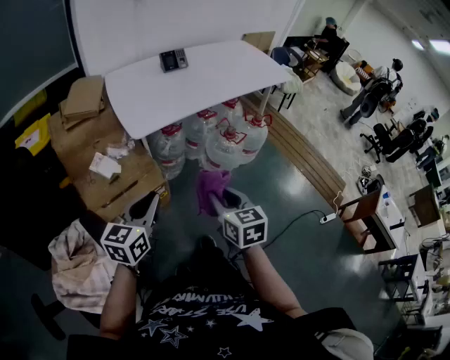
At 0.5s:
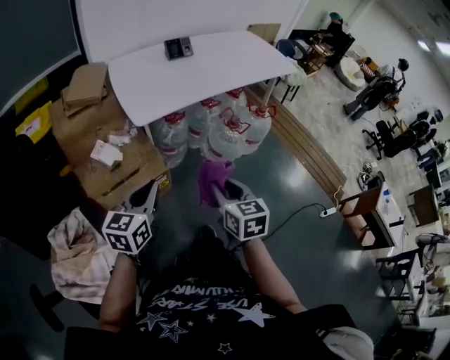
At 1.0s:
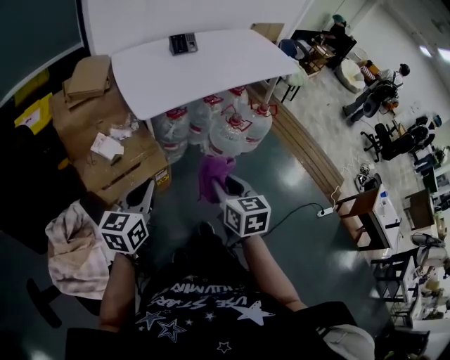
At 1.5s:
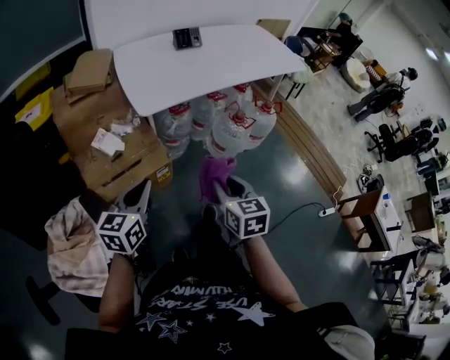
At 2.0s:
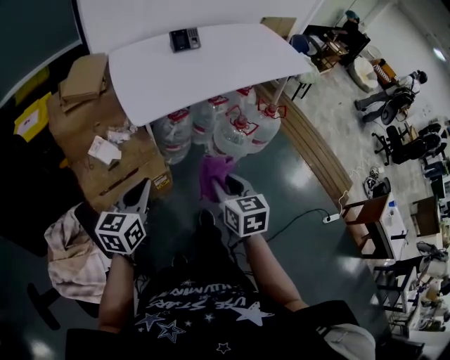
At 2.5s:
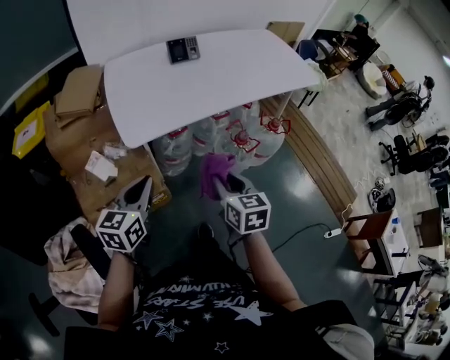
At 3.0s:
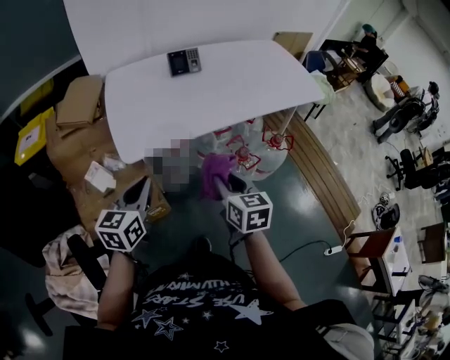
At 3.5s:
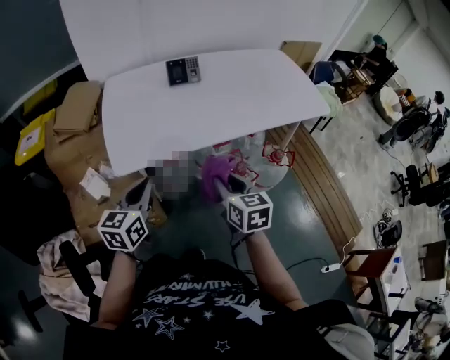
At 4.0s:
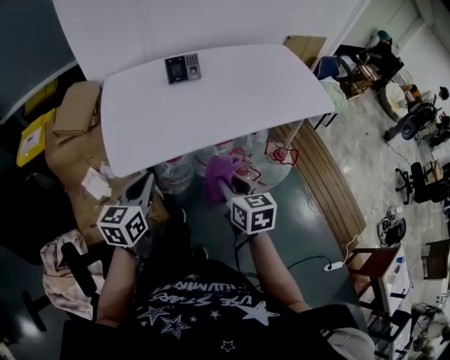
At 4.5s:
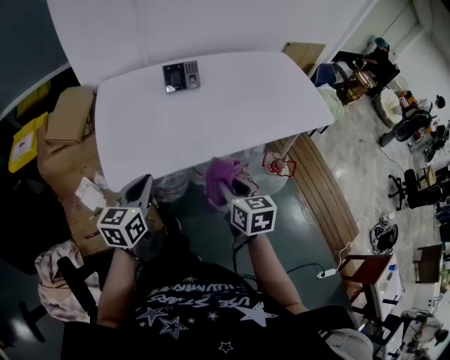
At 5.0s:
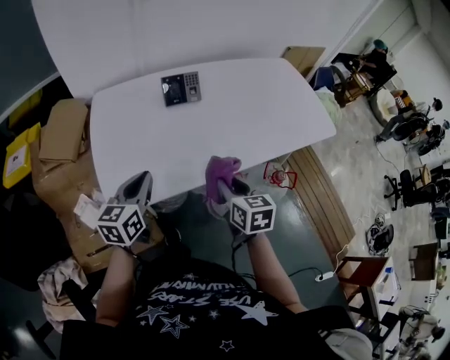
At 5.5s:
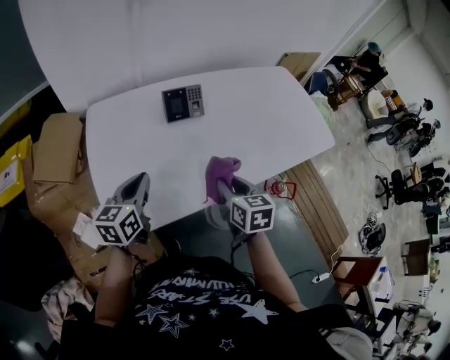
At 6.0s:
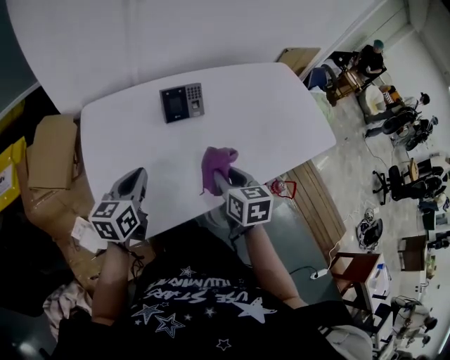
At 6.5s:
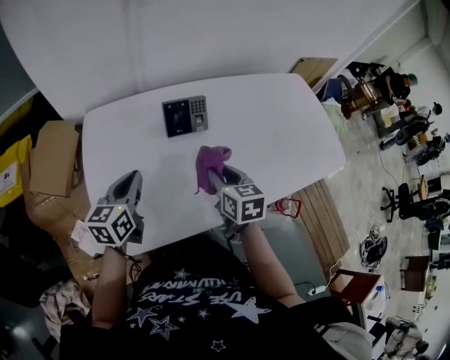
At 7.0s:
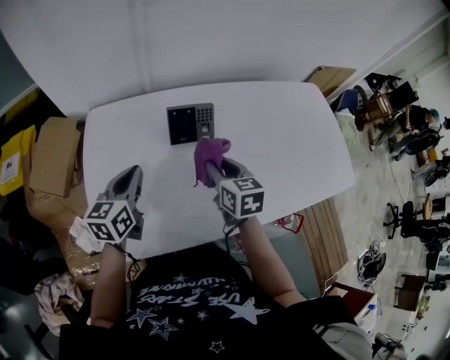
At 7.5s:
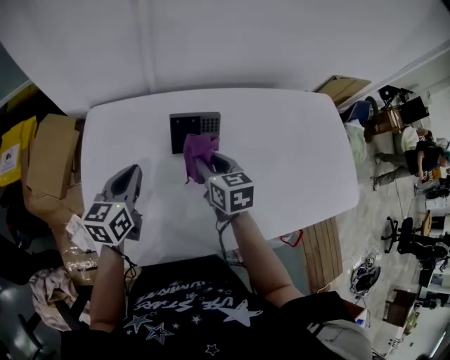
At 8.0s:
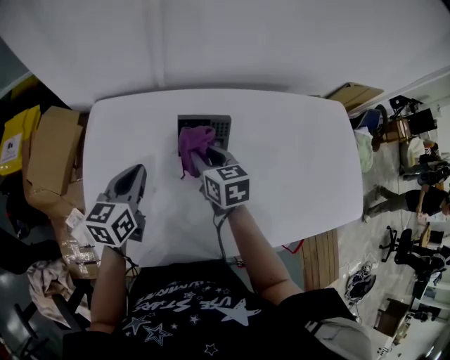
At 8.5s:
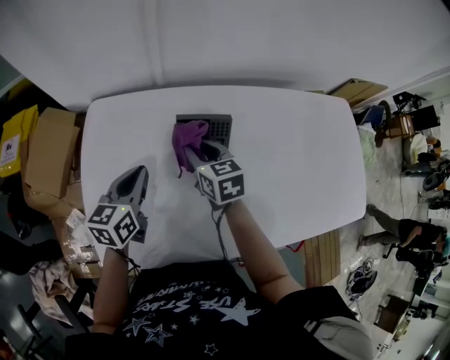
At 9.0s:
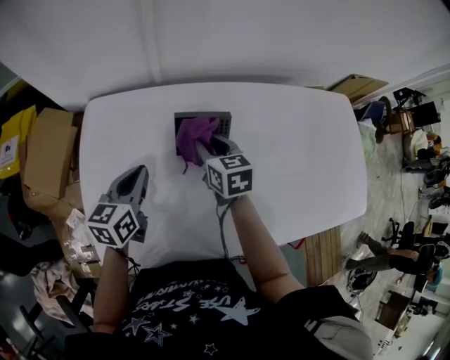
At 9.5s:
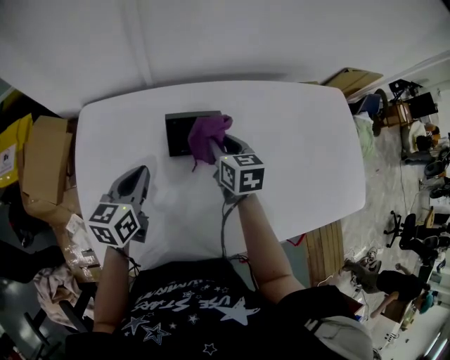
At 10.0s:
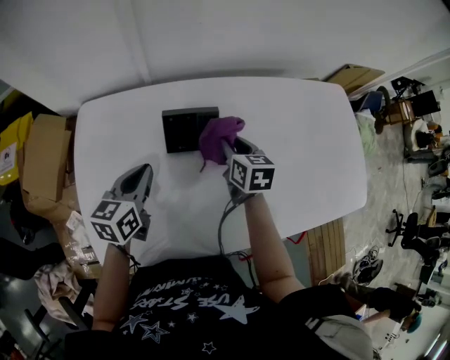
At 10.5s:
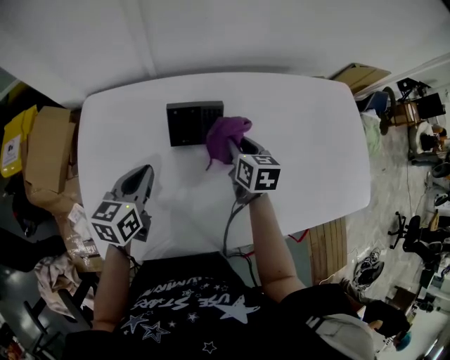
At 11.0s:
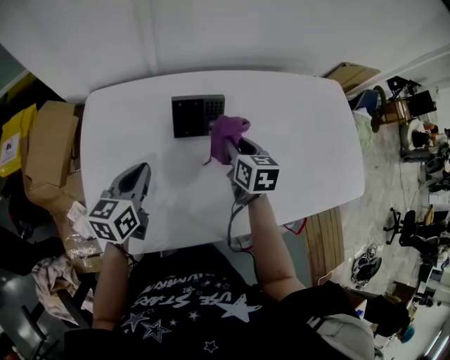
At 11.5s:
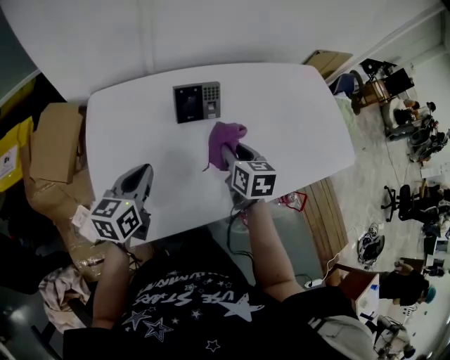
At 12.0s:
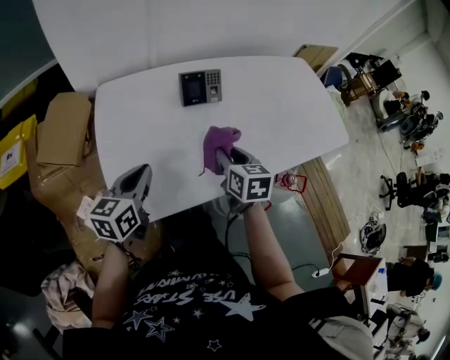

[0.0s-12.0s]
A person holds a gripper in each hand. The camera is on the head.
0.0s to 2.0s: The two grippers go approximately 10 cm forward.
2.0s to 4.0s: Both grippers move forward and to the right, some 30 cm.
4.0s to 6.0s: The grippers both shift forward by roughly 30 cm.
6.0s to 8.0s: The left gripper moves forward, roughly 15 cm, while the right gripper is displaced forward by approximately 25 cm, and swivels some 30 degrees.
8.0s to 10.0s: The right gripper is displaced to the right by approximately 10 cm, while the left gripper shifts by approximately 5 cm.
10.0s to 12.0s: The grippers both shift backward by approximately 25 cm.

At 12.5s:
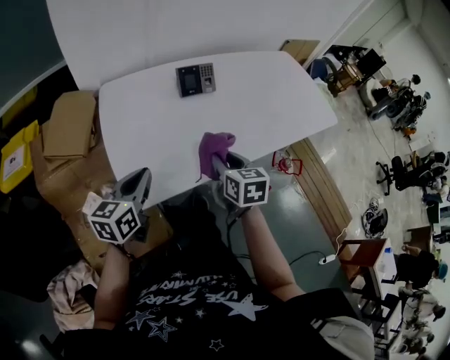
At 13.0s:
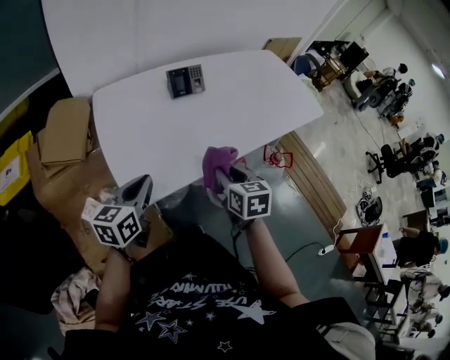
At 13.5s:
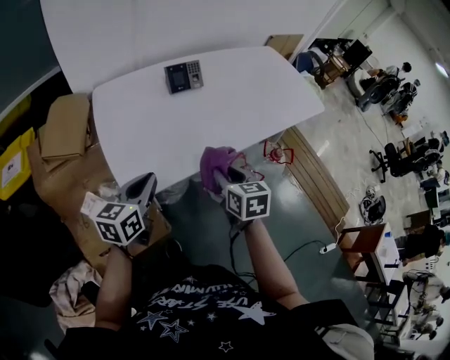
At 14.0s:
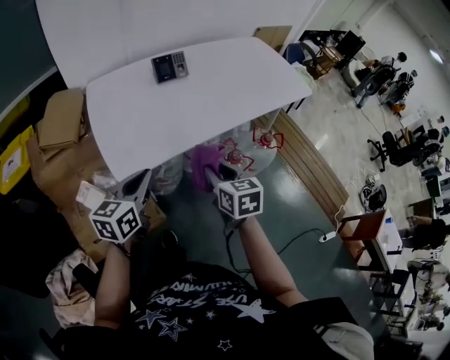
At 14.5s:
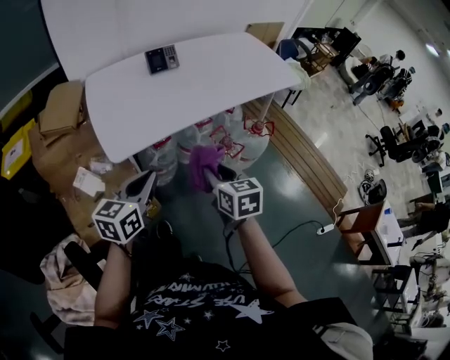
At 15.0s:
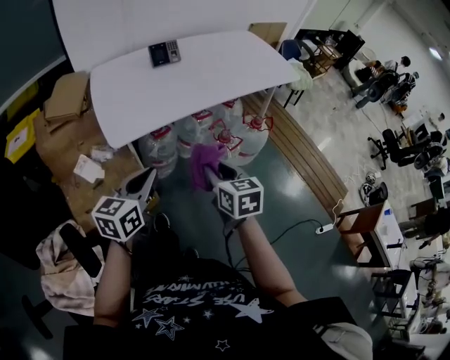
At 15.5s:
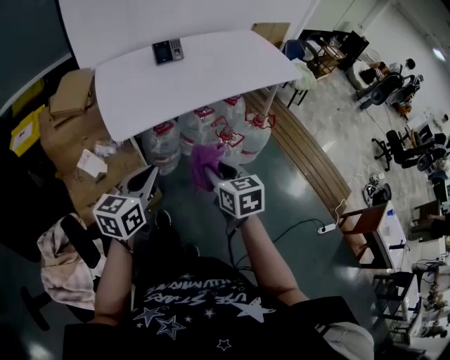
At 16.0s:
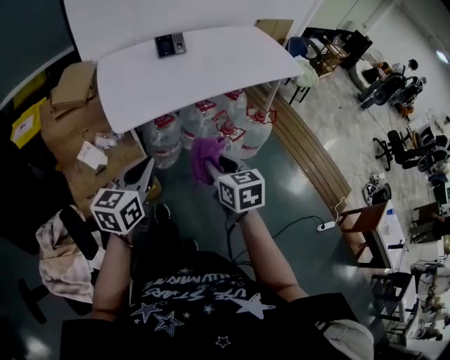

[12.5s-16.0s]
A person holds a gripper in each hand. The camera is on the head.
12.5s to 14.5s: Both grippers travel together backward and to the right, about 25 cm.
14.5s to 16.0s: Both grippers move backward, some 10 cm.

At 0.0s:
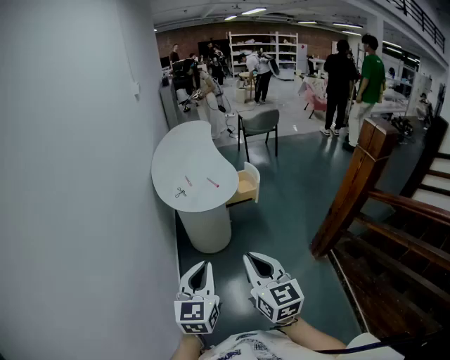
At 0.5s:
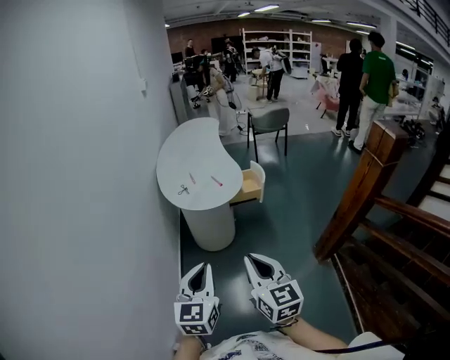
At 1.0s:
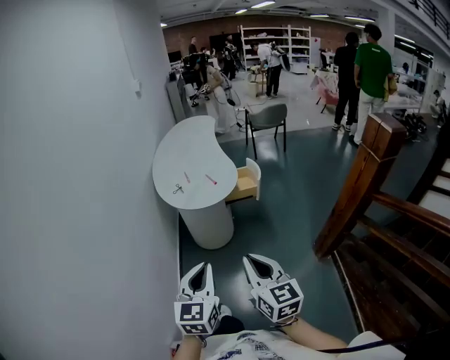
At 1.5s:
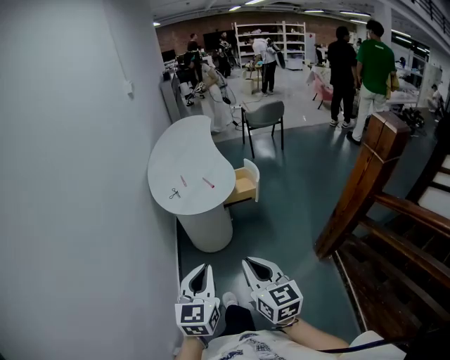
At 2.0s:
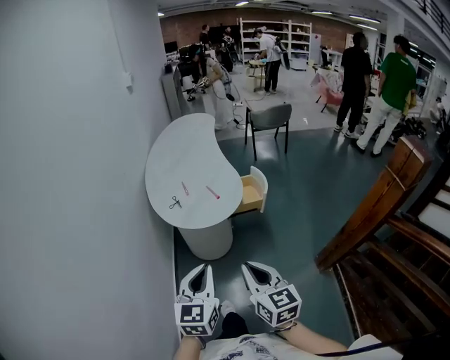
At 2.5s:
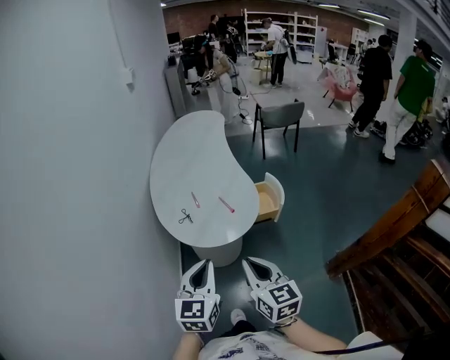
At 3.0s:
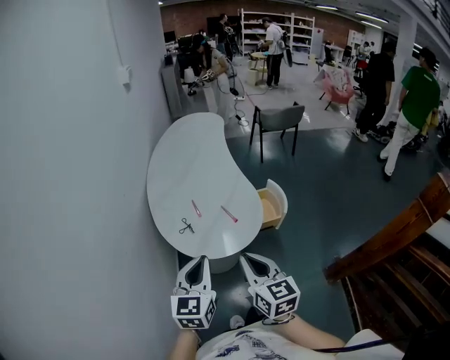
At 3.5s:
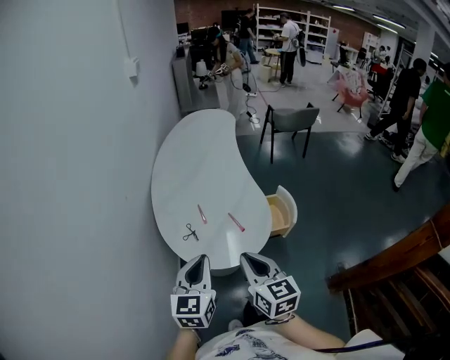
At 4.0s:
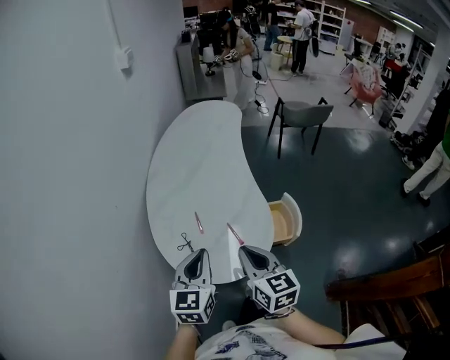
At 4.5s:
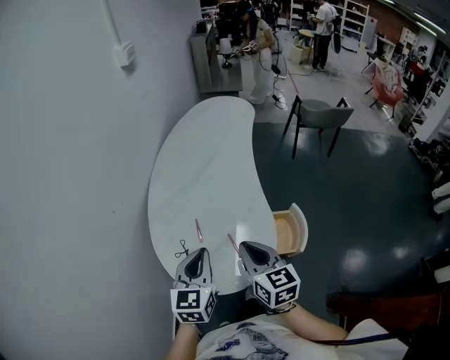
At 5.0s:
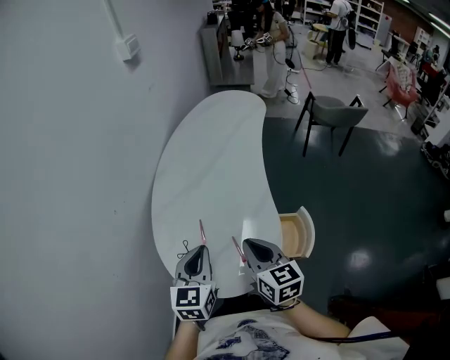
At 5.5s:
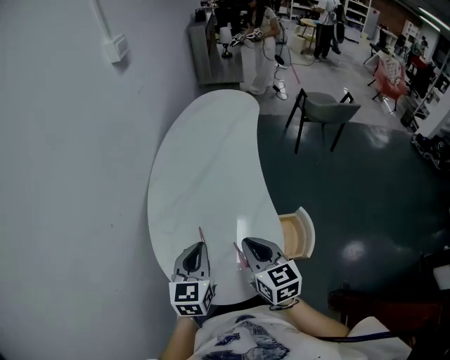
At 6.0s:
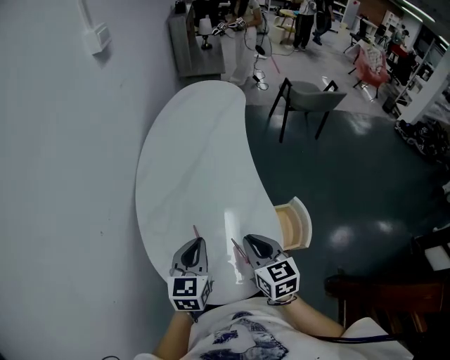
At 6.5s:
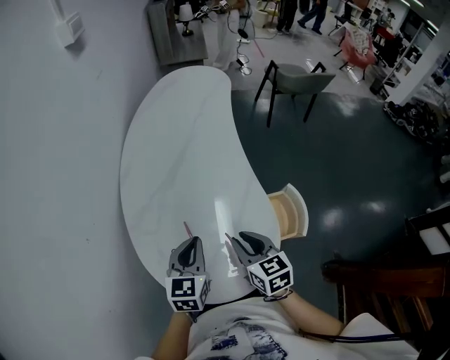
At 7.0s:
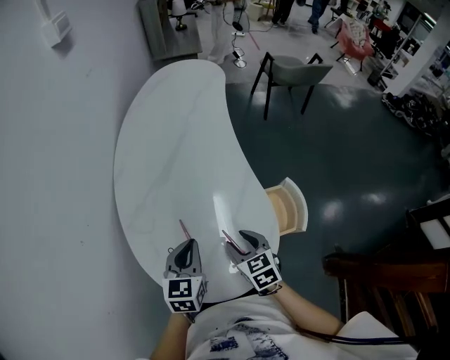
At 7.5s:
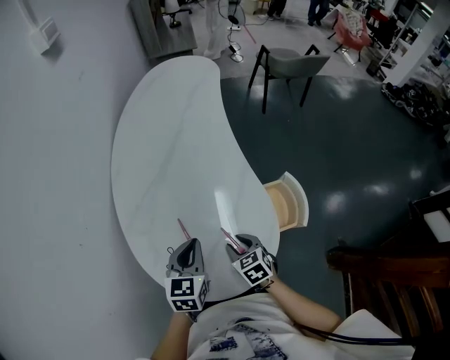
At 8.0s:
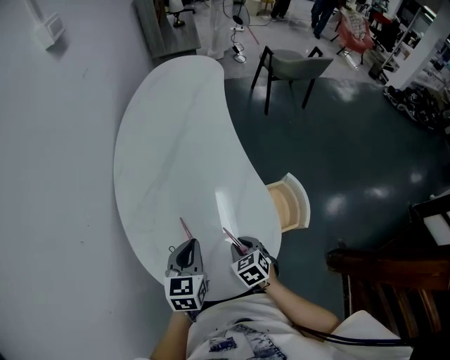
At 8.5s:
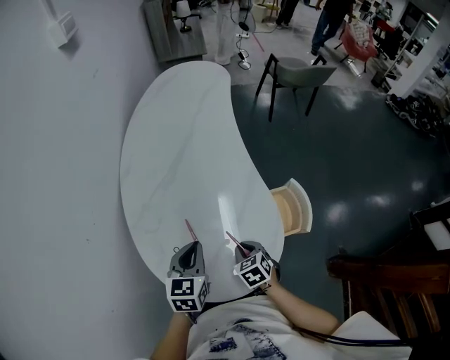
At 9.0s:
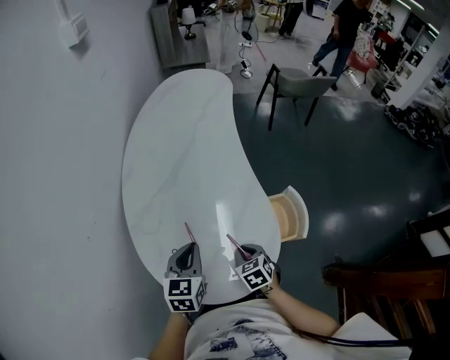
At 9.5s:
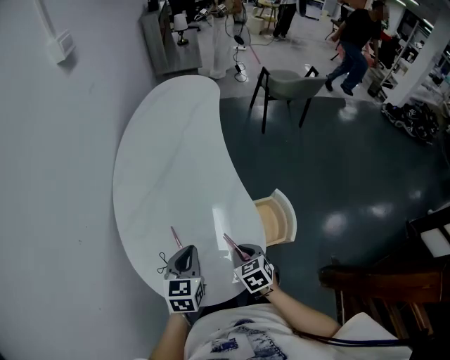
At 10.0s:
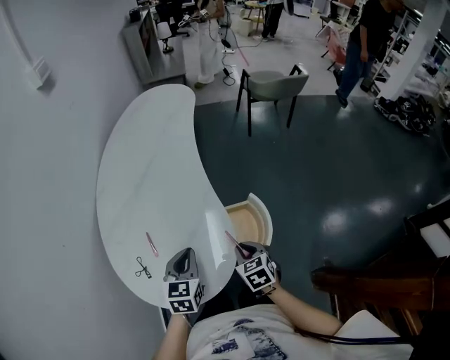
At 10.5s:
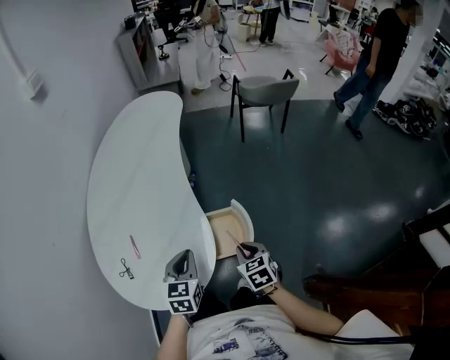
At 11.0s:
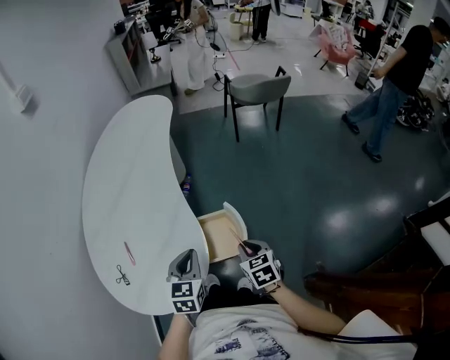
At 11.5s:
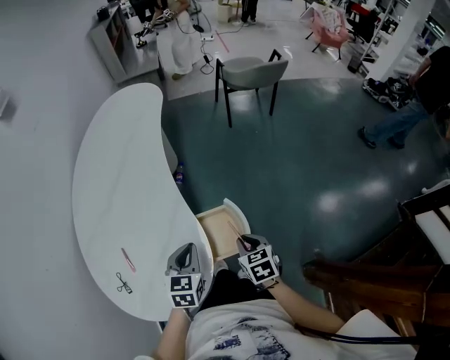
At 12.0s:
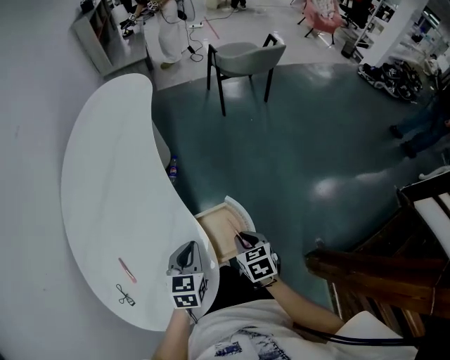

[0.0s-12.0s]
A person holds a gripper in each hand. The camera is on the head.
0.0s to 2.0s: The left gripper travels forward by approximately 20 cm. The right gripper goes roughly 20 cm forward and downward.
2.0s to 4.0s: Both grippers are carried forward, about 40 cm.
4.0s to 6.0s: The two grippers go approximately 20 cm forward and downward.
6.0s to 8.0s: The left gripper heads downward, covering approximately 10 cm, while the right gripper is displaced downward by roughly 20 cm, swivels roughly 30 degrees, and opens and closes again.
8.0s to 10.0s: The grippers both shift to the right by approximately 15 cm.
10.0s to 12.0s: The left gripper goes approximately 20 cm to the right, downward and forward, while the right gripper moves to the right, forward and downward, about 15 cm.
